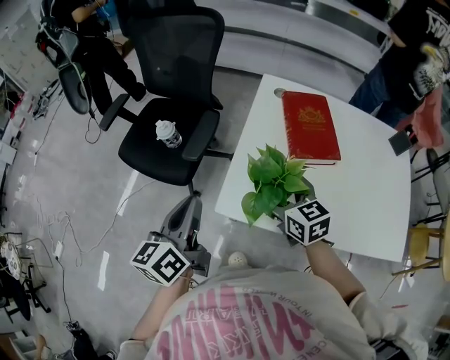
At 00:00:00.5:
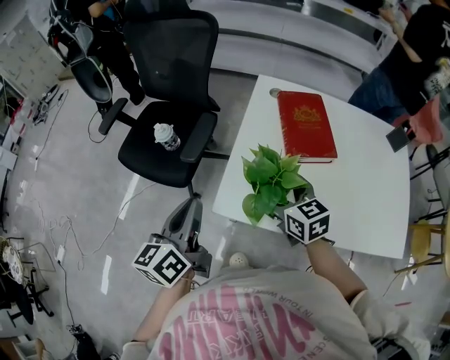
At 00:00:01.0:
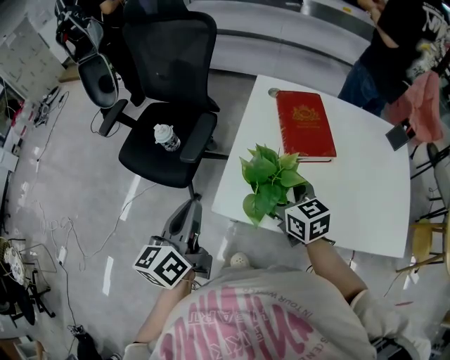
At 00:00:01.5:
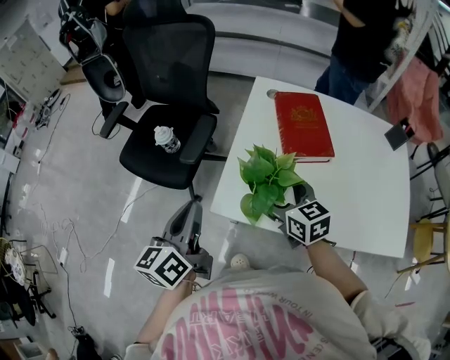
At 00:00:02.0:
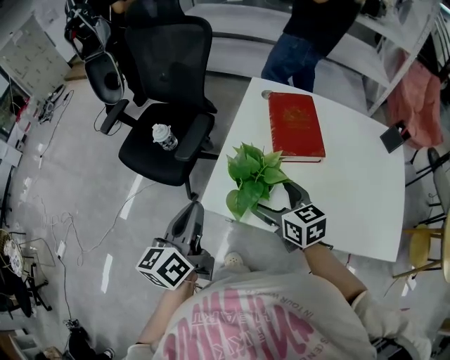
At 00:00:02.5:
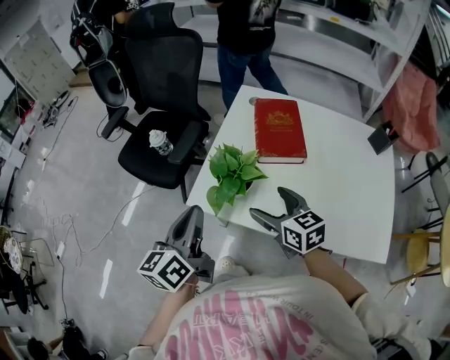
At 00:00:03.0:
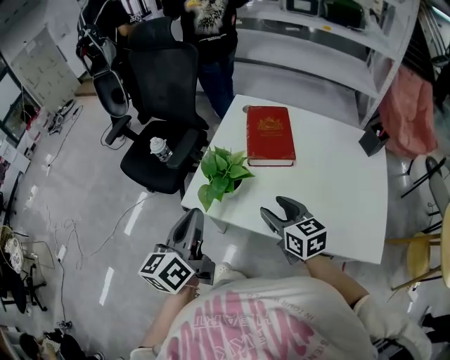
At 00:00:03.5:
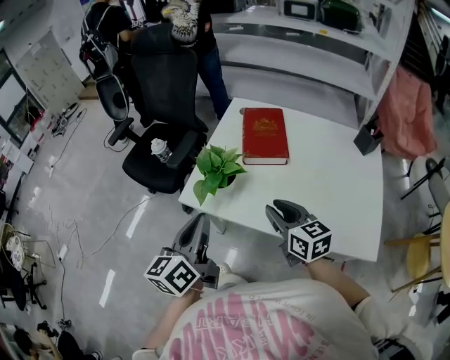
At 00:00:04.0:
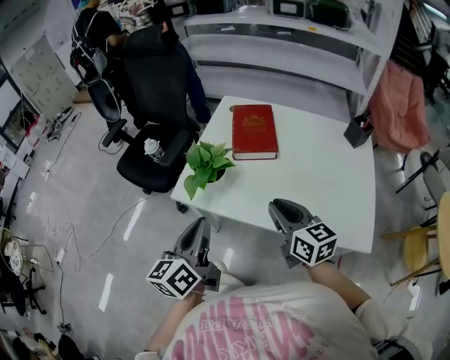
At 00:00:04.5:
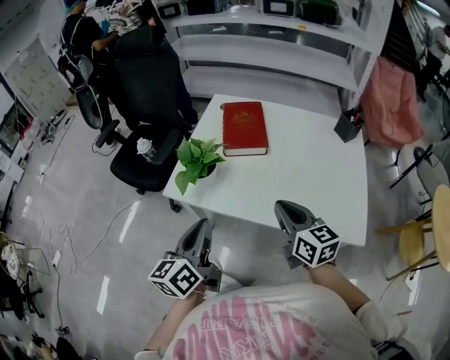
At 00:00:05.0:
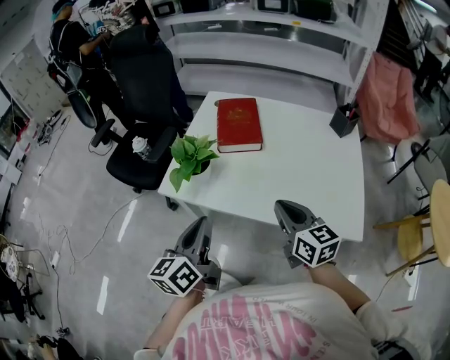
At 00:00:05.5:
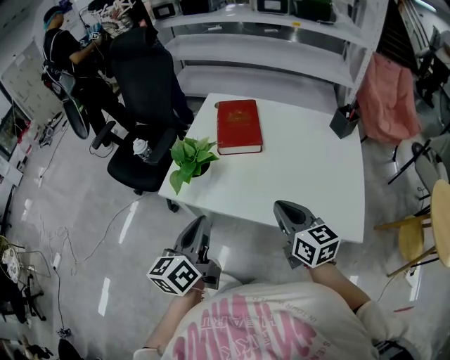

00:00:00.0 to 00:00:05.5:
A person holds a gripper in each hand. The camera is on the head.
00:00:00.0 to 00:00:02.0: The left gripper heads to the right, covering roughly 5 cm, while the right gripper shifts by about 5 cm.
00:00:02.0 to 00:00:03.5: The left gripper goes roughly 15 cm backward and to the right, while the right gripper goes approximately 20 cm backward, to the right and upward, and closes.
00:00:03.5 to 00:00:05.5: The right gripper is displaced to the right and backward by about 10 cm. The left gripper moves to the right, approximately 5 cm.

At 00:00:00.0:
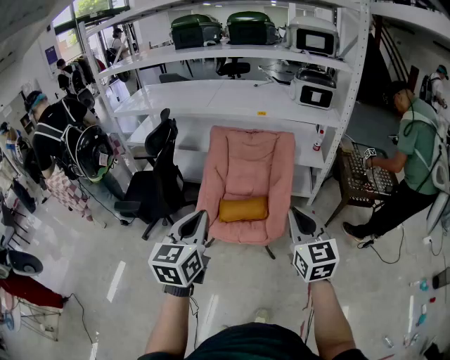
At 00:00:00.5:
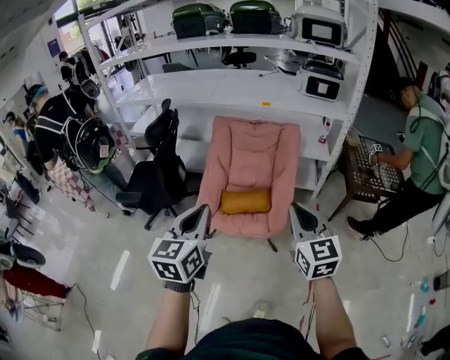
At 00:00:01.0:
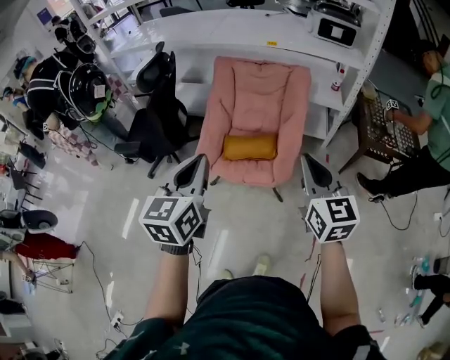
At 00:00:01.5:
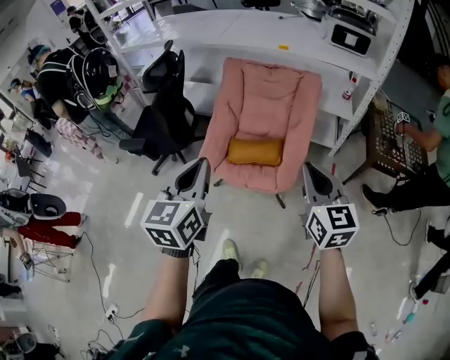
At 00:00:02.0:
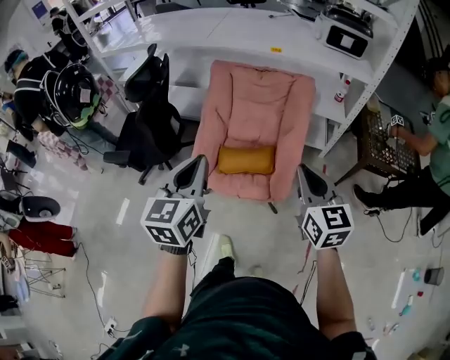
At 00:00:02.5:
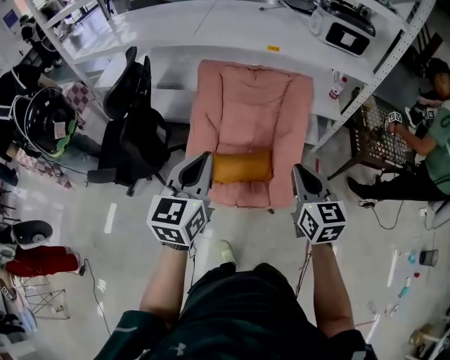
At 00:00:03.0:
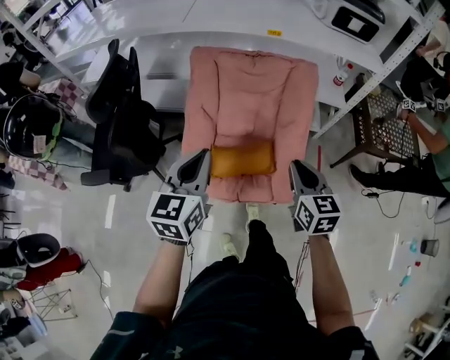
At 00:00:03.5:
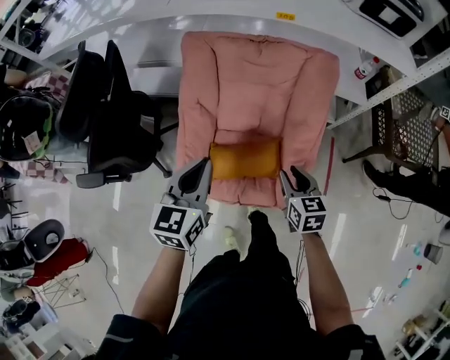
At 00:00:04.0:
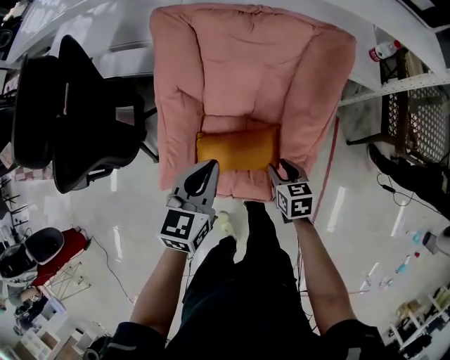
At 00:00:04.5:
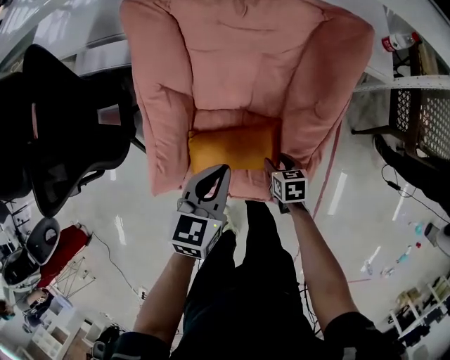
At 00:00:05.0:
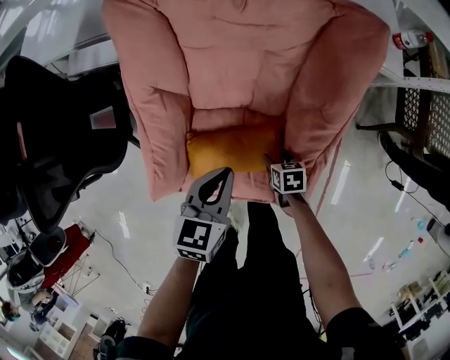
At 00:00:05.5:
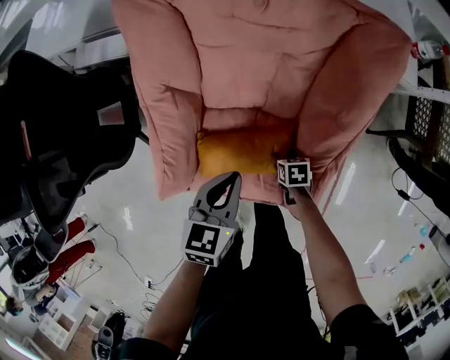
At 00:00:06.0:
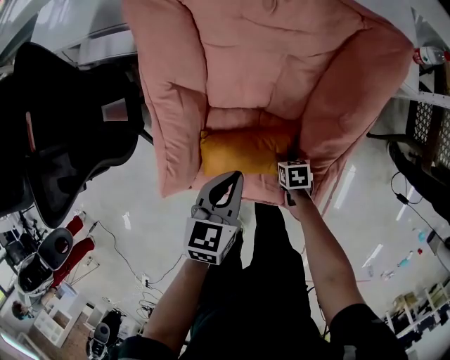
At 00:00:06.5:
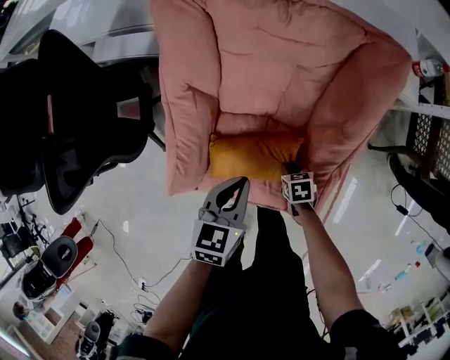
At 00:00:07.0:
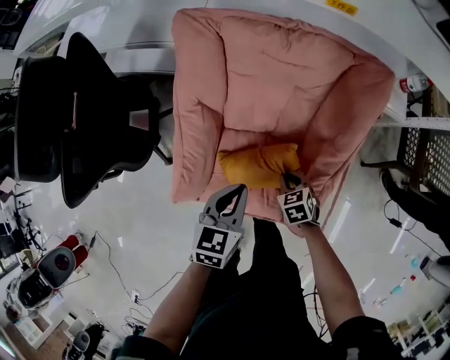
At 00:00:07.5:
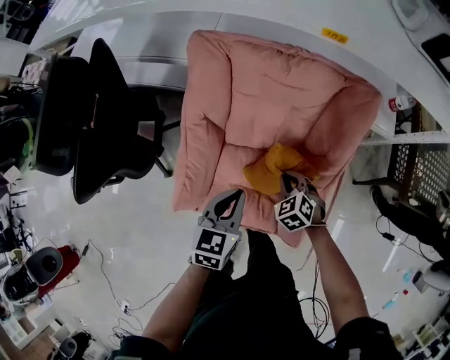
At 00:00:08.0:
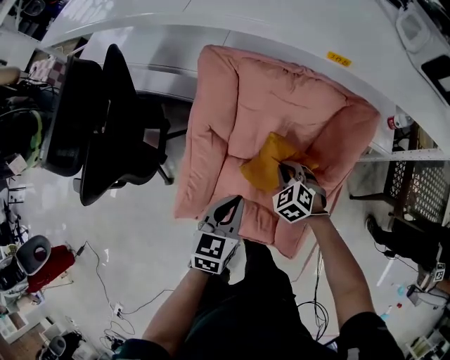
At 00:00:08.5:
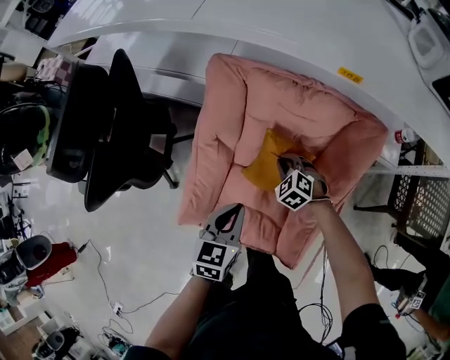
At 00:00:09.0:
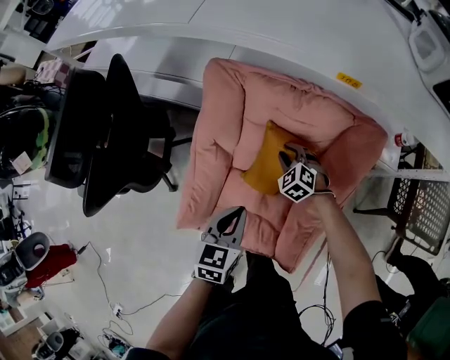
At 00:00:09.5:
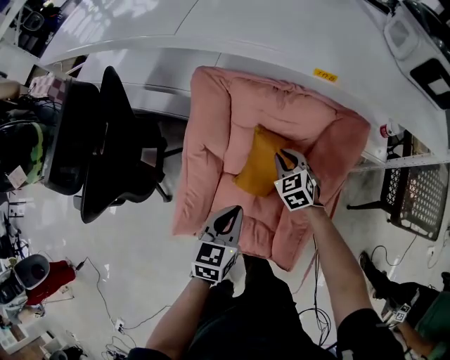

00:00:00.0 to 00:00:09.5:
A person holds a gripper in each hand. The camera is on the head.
00:00:00.0 to 00:00:02.0: The grippers both shift forward and downward by about 20 cm.
00:00:02.0 to 00:00:04.0: The right gripper travels downward and forward by some 50 cm, tilts its fingers some 40 degrees downward, and opens its fingers. The left gripper moves forward and downward, approximately 50 cm, and swivels approximately 20 degrees.
00:00:04.0 to 00:00:05.5: The right gripper is displaced downward by roughly 25 cm, rotates roughly 30 degrees, and opens its fingers. The left gripper travels downward by about 15 cm.
00:00:05.5 to 00:00:07.5: The left gripper heads upward, covering approximately 10 cm. Meanwhile the right gripper heads upward, covering some 20 cm, twists some 50 degrees counterclockwise, seen from behind, and closes up.
00:00:07.5 to 00:00:09.5: The right gripper goes some 20 cm forward and upward.

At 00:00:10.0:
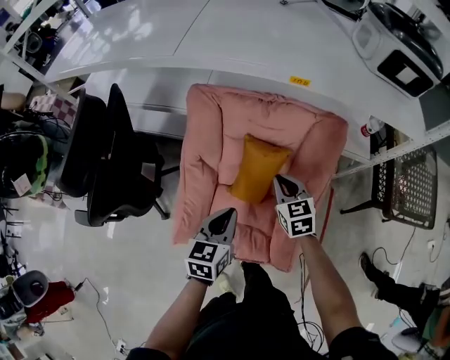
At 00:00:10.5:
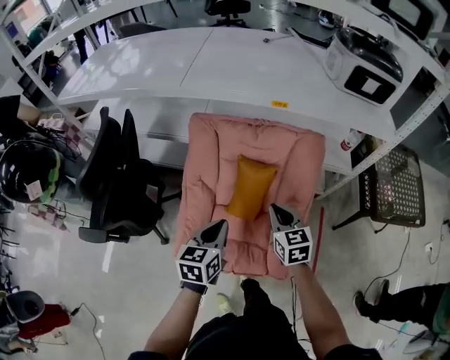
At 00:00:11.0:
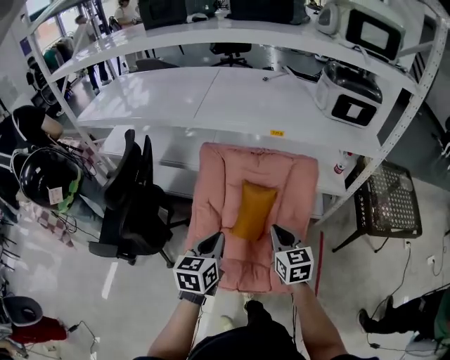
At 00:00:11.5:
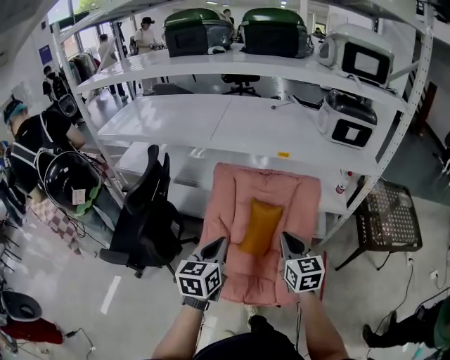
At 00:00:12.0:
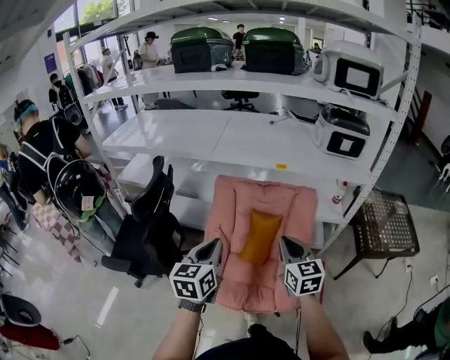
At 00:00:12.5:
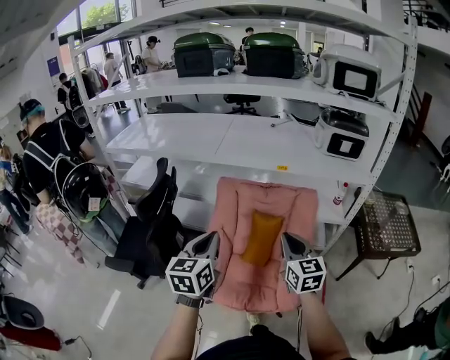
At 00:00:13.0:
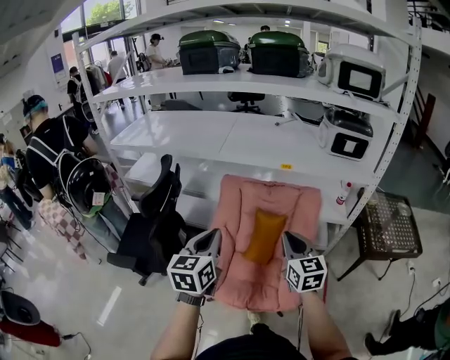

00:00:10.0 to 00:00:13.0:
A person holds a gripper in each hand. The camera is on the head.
00:00:10.0 to 00:00:11.5: The two grippers go approximately 30 cm upward and backward. The right gripper swivels about 20 degrees.
00:00:11.5 to 00:00:13.0: The right gripper travels upward by approximately 5 cm. Meanwhile the left gripper goes some 10 cm upward.

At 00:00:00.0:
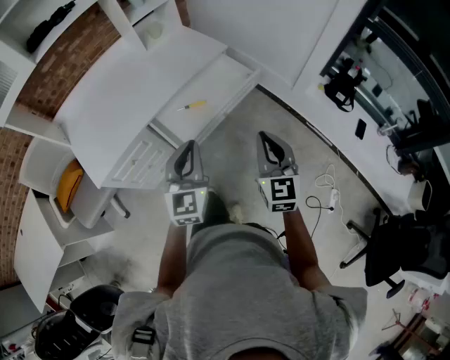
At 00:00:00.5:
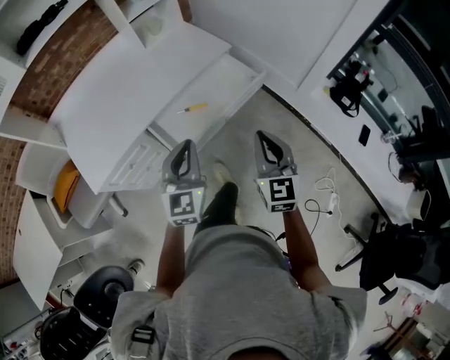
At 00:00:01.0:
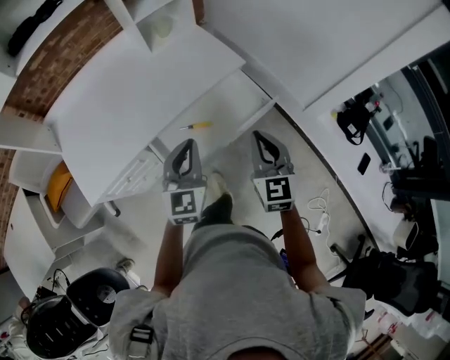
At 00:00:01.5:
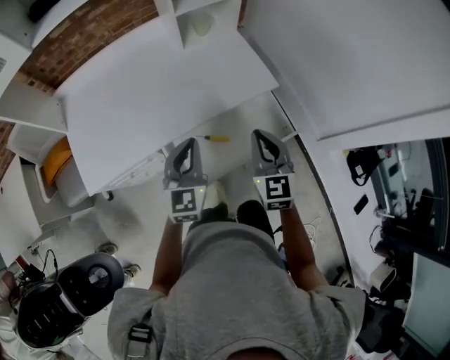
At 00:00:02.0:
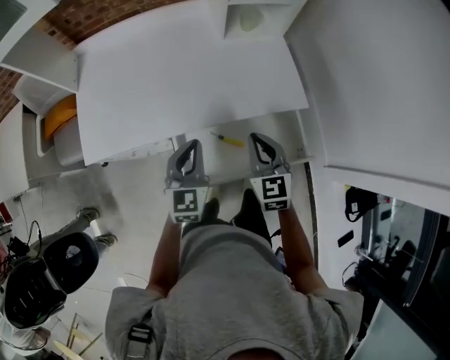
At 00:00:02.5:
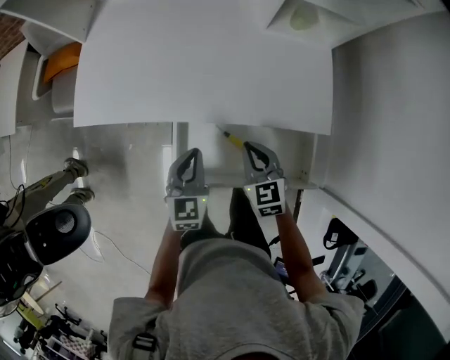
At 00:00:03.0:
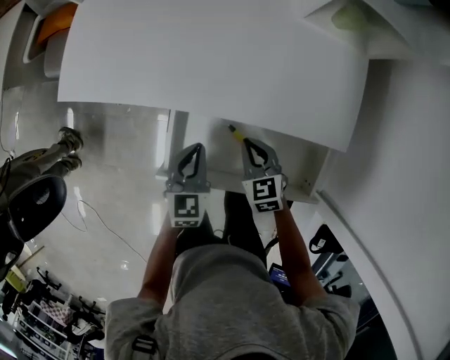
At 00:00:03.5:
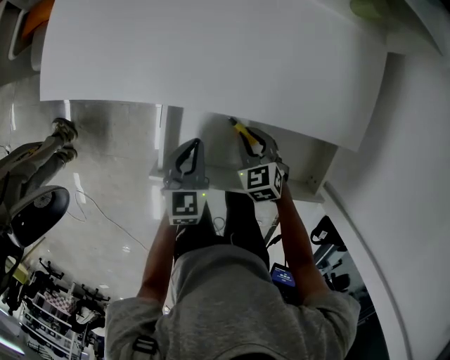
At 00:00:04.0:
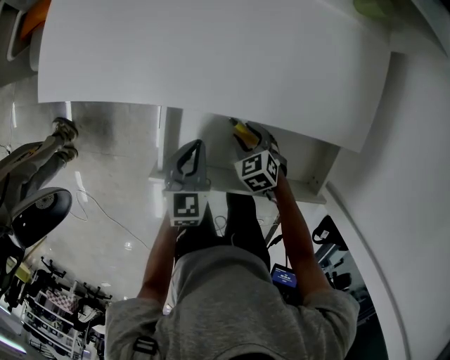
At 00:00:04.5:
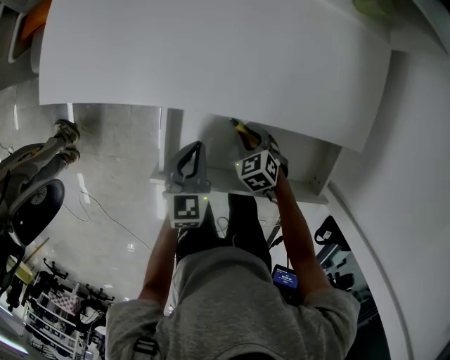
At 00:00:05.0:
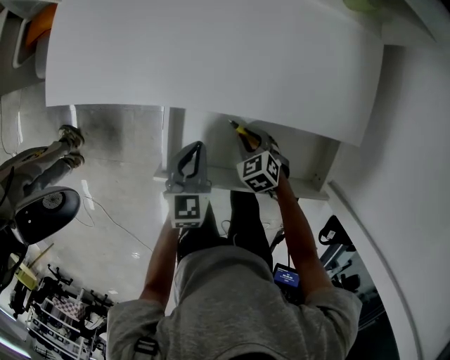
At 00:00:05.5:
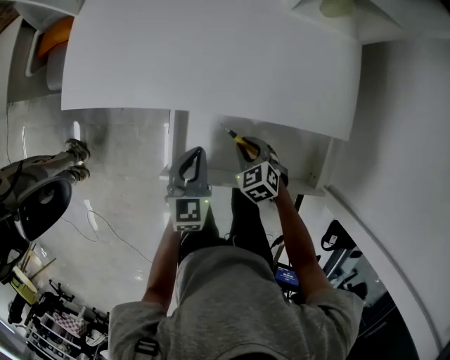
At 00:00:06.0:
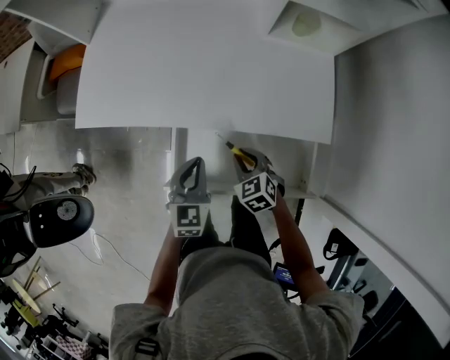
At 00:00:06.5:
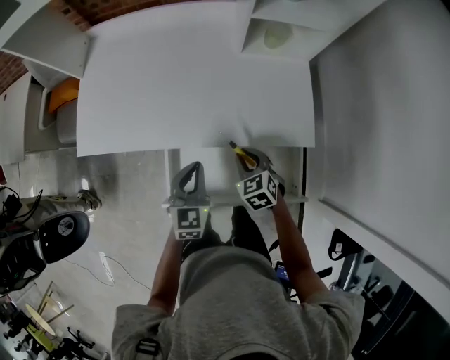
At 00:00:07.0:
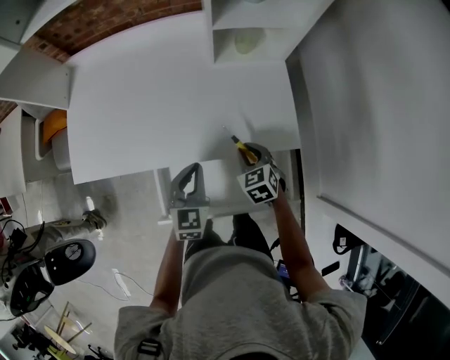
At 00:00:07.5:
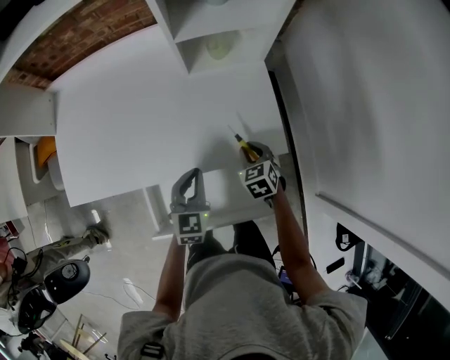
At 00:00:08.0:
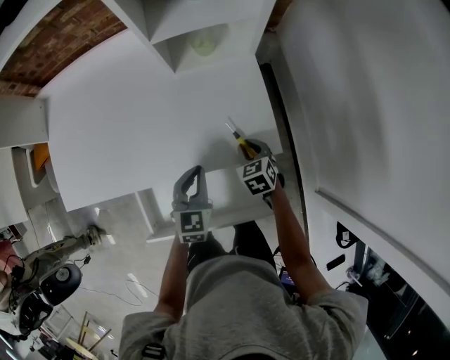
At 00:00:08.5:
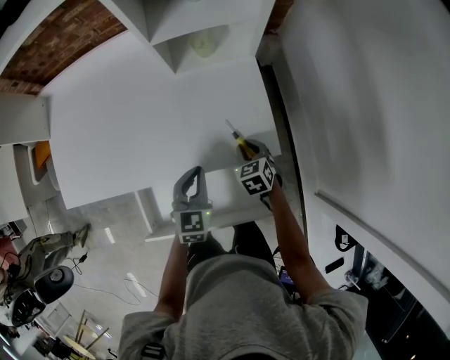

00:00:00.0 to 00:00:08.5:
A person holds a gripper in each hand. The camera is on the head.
00:00:00.0 to 00:00:02.0: The left gripper changes place by some 30 cm, and rotates roughly 30 degrees; the right gripper moves approximately 40 cm, and changes its angle by some 40 degrees.
00:00:02.0 to 00:00:04.0: The two grippers go approximately 30 cm downward. The right gripper points its fingers roughly 40 degrees further downward, and opens up. The left gripper rotates roughly 30 degrees.
00:00:04.0 to 00:00:06.5: Both grippers travel together upward, roughly 20 cm. The right gripper changes its angle by some 20 degrees, and closes its fingers.
00:00:06.5 to 00:00:08.5: The left gripper travels to the right and forward by about 20 cm; the right gripper is displaced to the right, forward and downward by some 20 cm.
